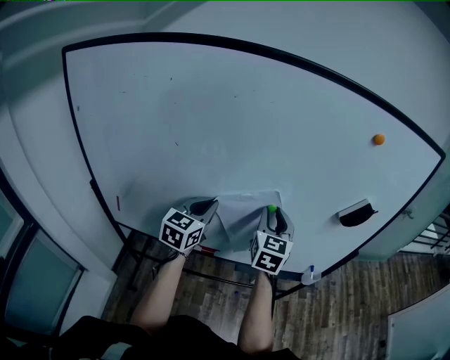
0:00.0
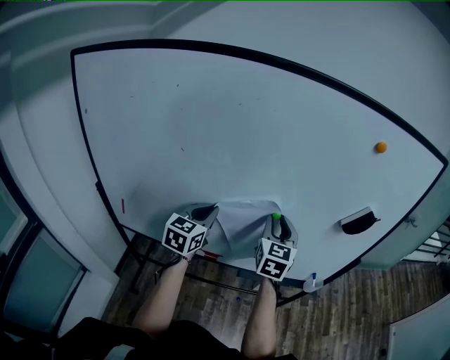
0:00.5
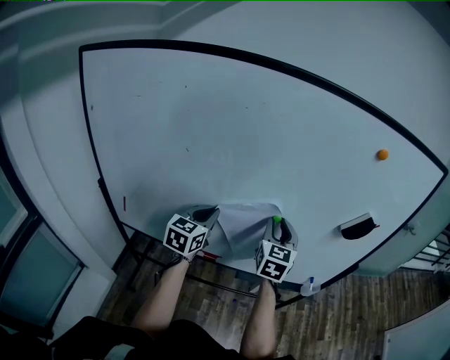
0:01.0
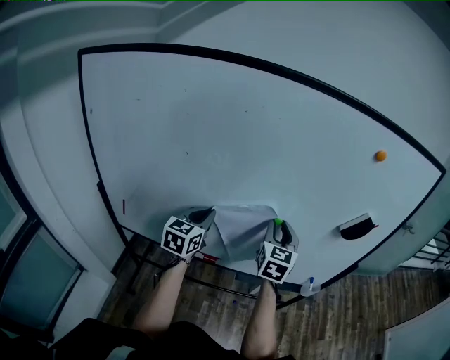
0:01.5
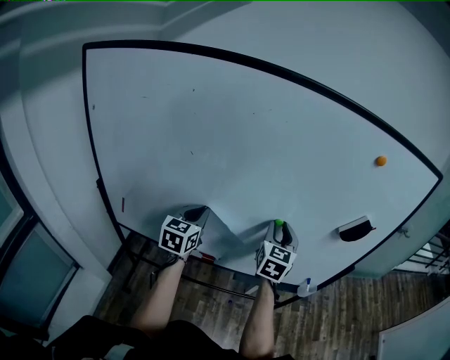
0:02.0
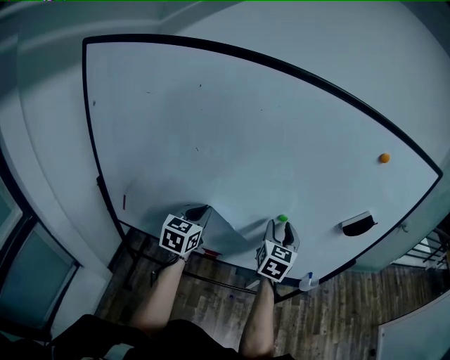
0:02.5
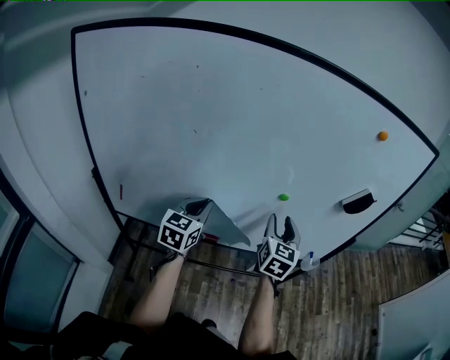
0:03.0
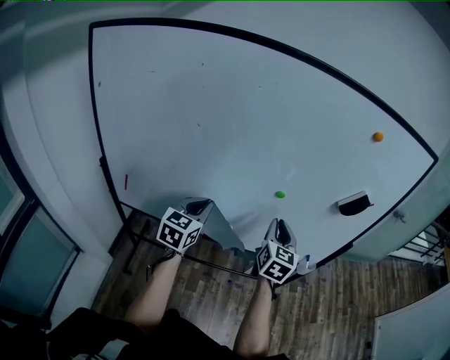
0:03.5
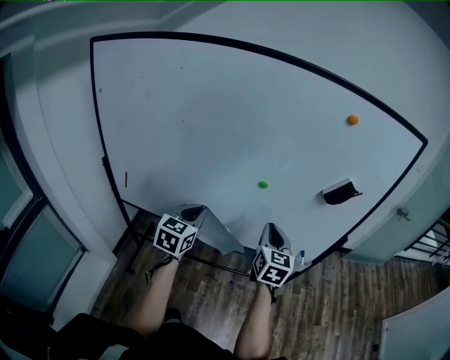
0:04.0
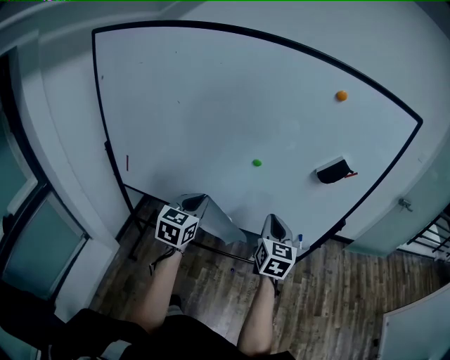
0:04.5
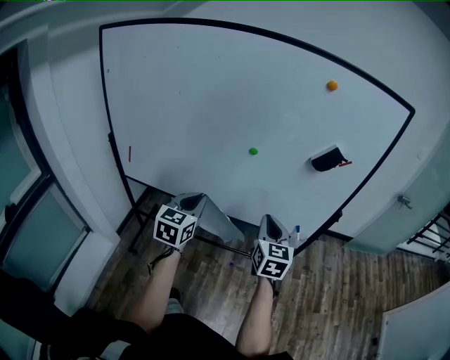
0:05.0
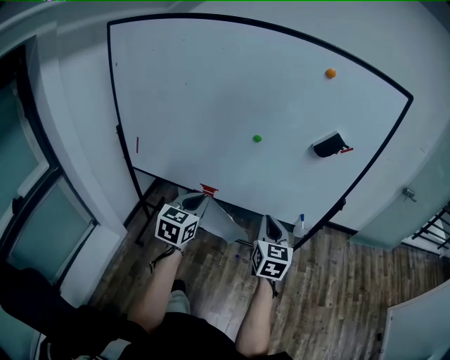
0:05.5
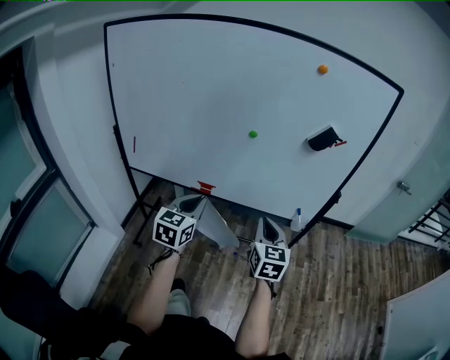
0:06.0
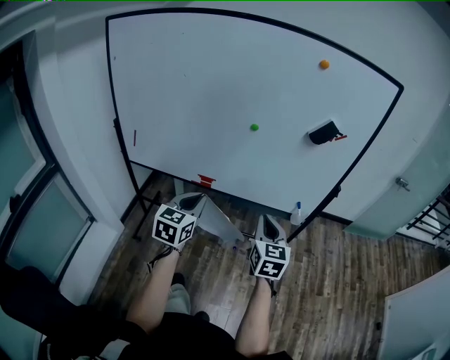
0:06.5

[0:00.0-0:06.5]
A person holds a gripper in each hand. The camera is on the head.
0:00.0 to 0:02.0: The left gripper heads to the left, covering some 5 cm.
0:02.0 to 0:04.5: Both grippers travel together backward and to the right, roughly 20 cm. The right gripper closes up.
0:04.5 to 0:06.5: Both grippers travel together backward, about 15 cm.

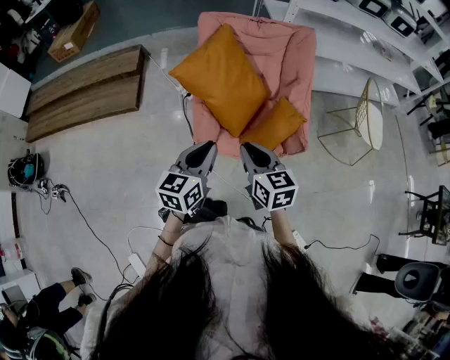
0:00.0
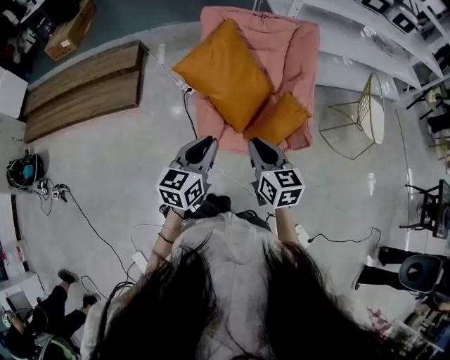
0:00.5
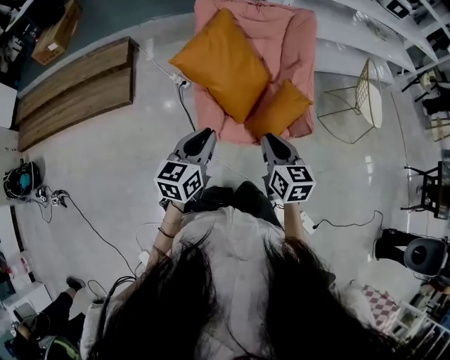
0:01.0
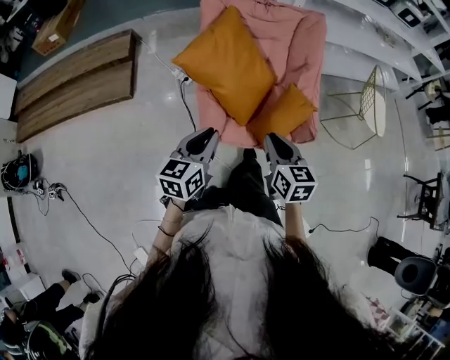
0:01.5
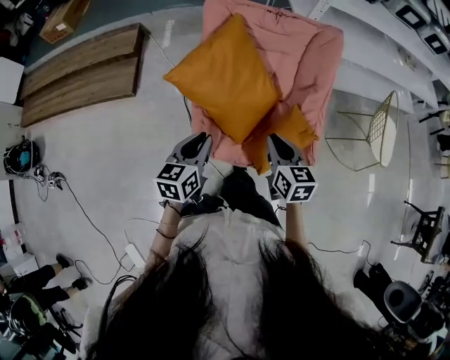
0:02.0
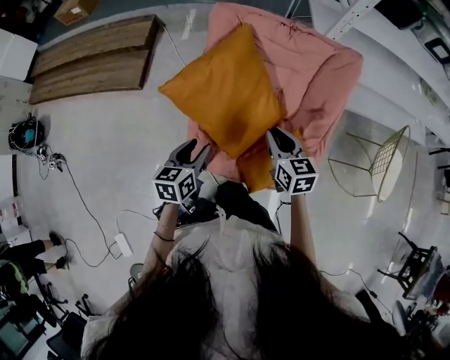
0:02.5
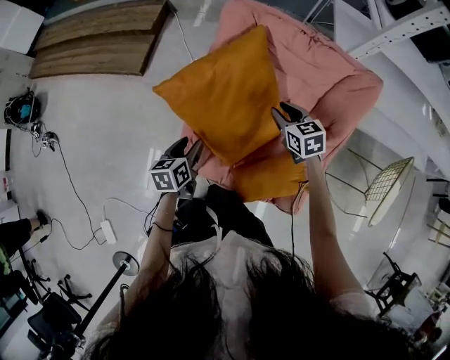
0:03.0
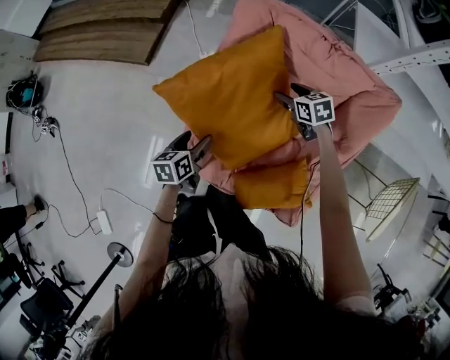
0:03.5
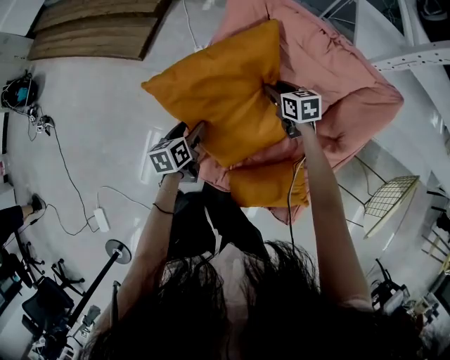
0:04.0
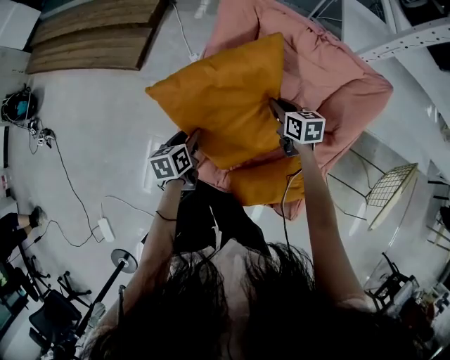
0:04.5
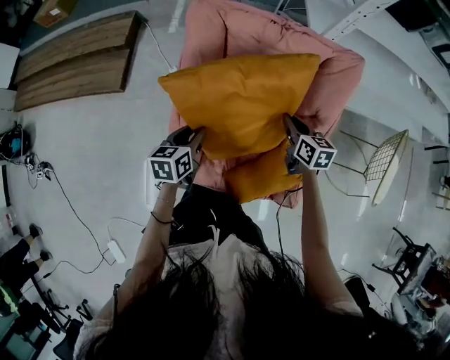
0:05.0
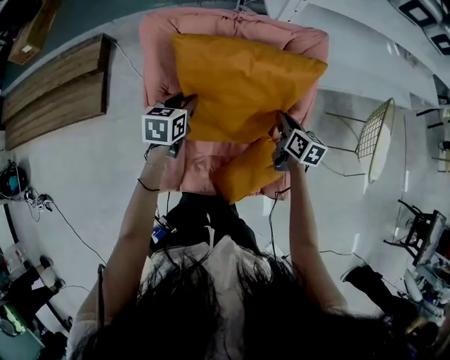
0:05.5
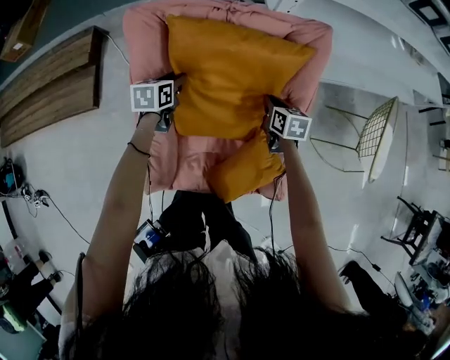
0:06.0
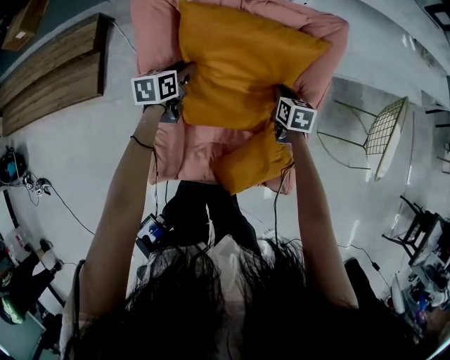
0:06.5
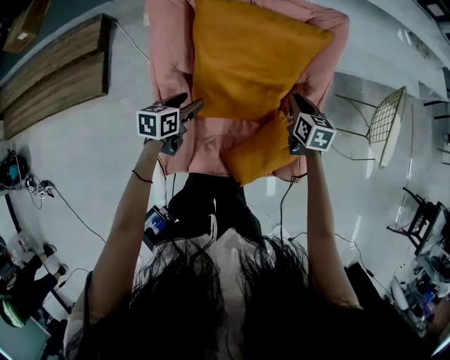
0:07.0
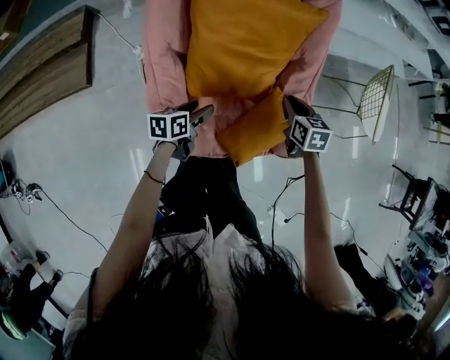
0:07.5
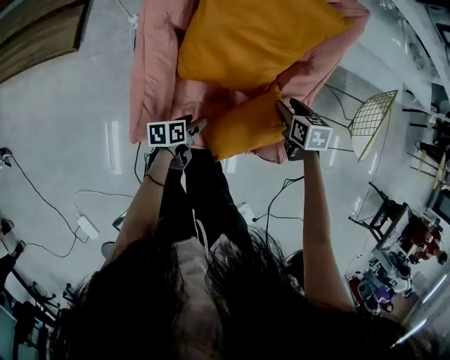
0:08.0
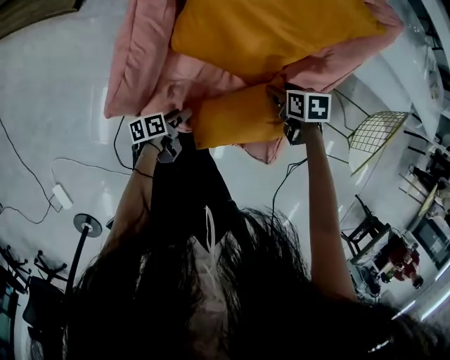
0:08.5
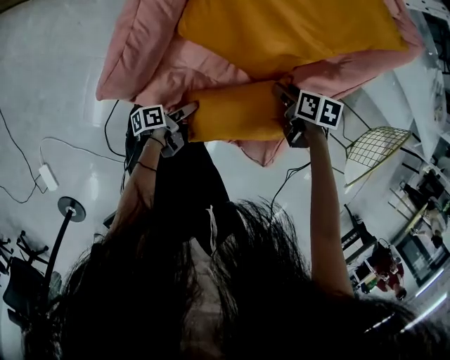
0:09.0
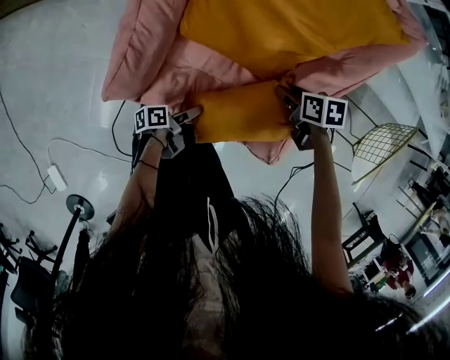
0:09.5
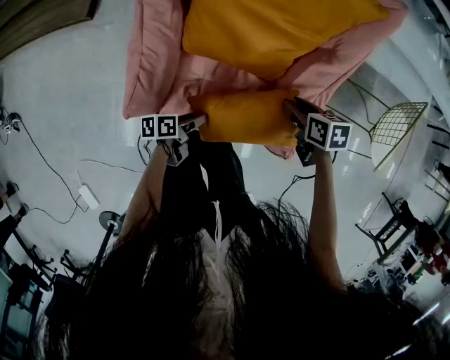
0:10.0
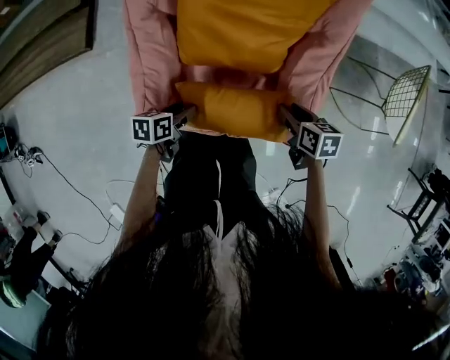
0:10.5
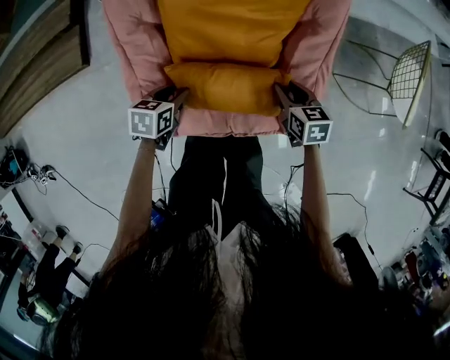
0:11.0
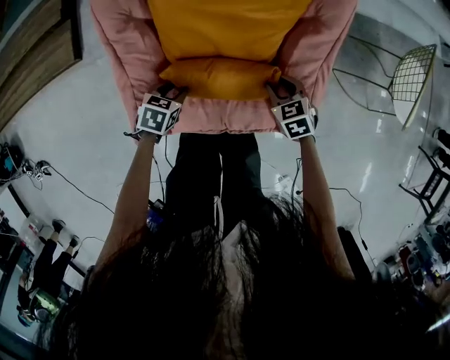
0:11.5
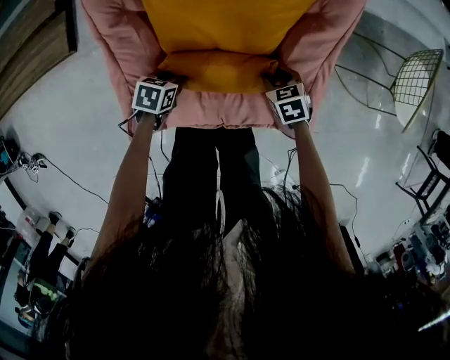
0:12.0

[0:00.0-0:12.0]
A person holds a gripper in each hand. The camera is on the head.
0:00.0 to 0:02.0: The left gripper heads forward and downward, covering roughly 15 cm. Meanwhile the right gripper goes roughly 15 cm forward.
0:02.0 to 0:04.0: The left gripper heads downward, covering about 20 cm, rotates approximately 40 degrees, and opens its fingers; the right gripper shifts by approximately 40 cm, swivels about 40 degrees, and opens.
0:04.0 to 0:06.0: The left gripper ends up some 25 cm from where it was, swivels roughly 40 degrees, and closes. Meanwhile the right gripper travels upward and back again, about 10 cm each way, turns by some 40 degrees, and closes its fingers.
0:06.0 to 0:08.0: The right gripper goes some 15 cm backward, and opens up; the left gripper goes some 40 cm backward, downward and to the right, changes its angle by about 40 degrees, and opens.
0:08.0 to 0:10.0: The left gripper reaches approximately 10 cm downward, then returns; the right gripper moves about 10 cm downward and comes back.
0:10.0 to 0:12.0: The left gripper heads forward and to the left, covering about 15 cm, and rolls clockwise, seen from behind, by about 50 degrees. Meanwhile the right gripper is displaced downward by approximately 10 cm, and swivels about 20 degrees.

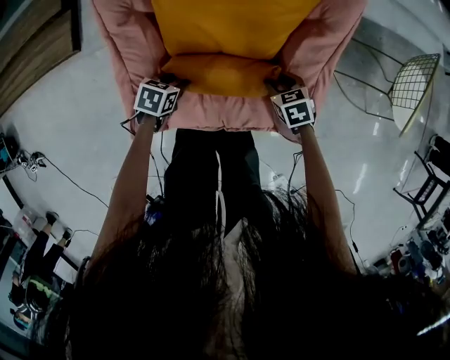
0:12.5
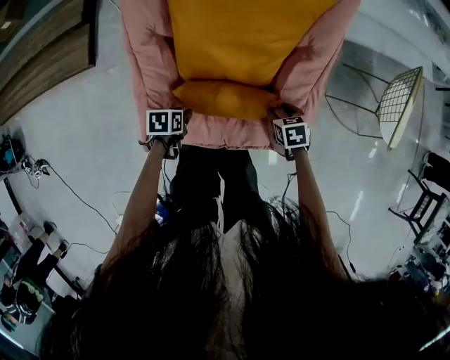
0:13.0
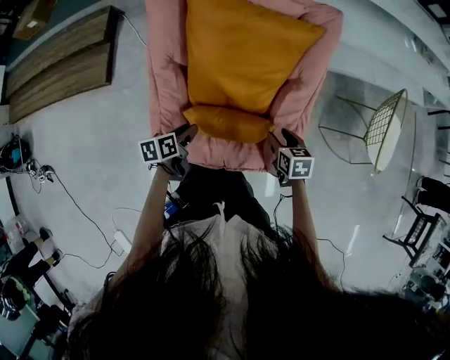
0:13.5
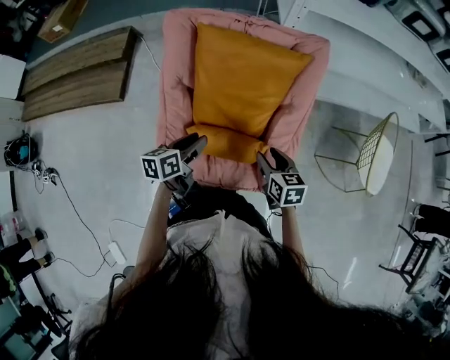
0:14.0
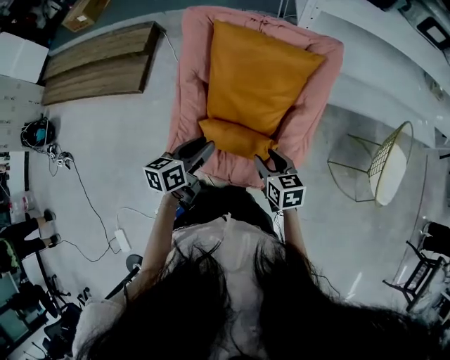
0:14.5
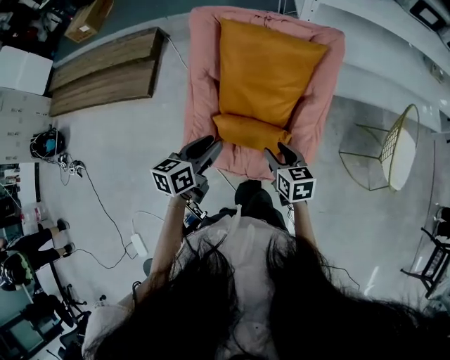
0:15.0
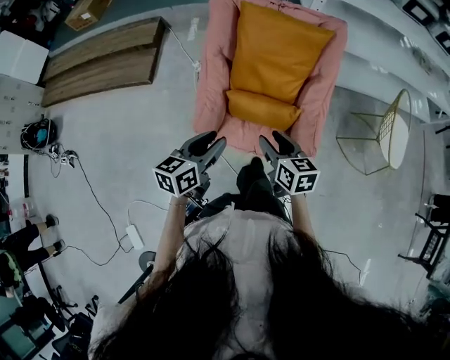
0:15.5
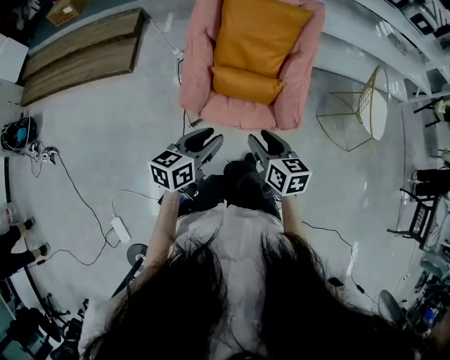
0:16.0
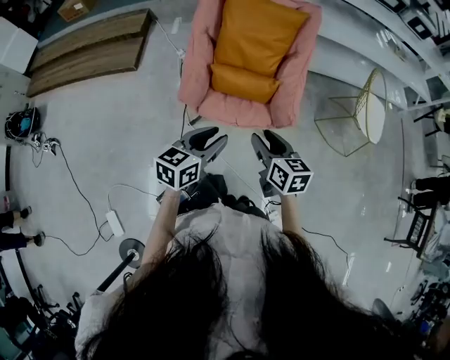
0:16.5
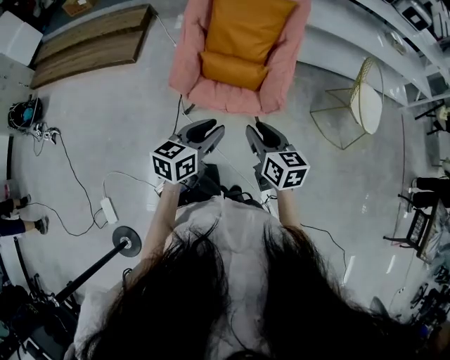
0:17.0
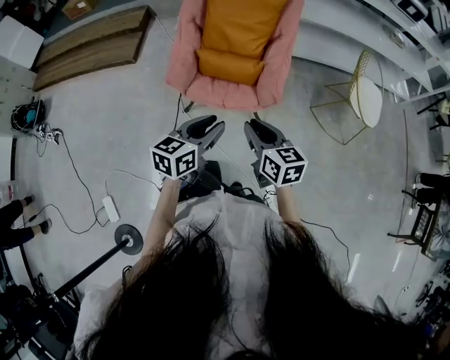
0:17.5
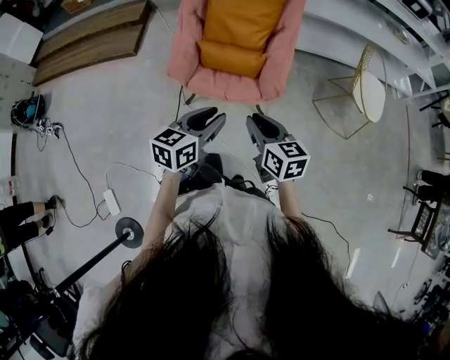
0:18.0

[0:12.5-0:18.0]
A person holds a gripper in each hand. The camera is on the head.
0:12.5 to 0:14.5: The grippers both shift upward by about 30 cm. The left gripper tips its fingers upward by some 40 degrees, while the right gripper rotates approximately 30 degrees.
0:14.5 to 0:16.0: The right gripper travels backward and to the left by about 30 cm; the left gripper goes about 30 cm backward.
0:16.0 to 0:18.0: Both grippers travel together to the right and backward, some 15 cm. The right gripper closes.

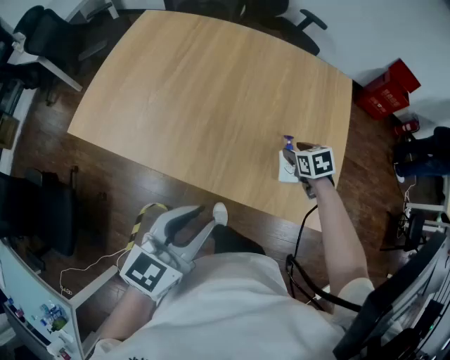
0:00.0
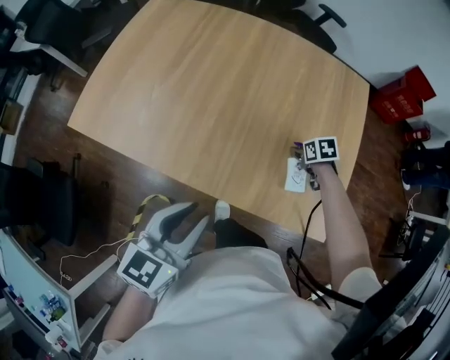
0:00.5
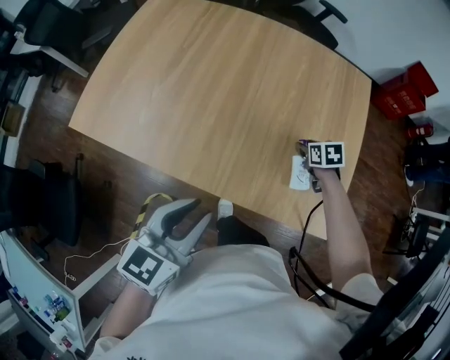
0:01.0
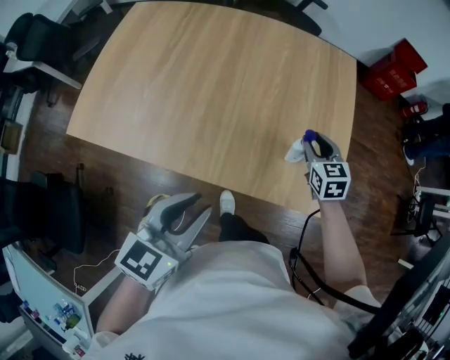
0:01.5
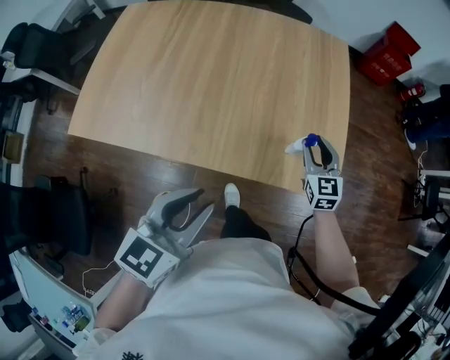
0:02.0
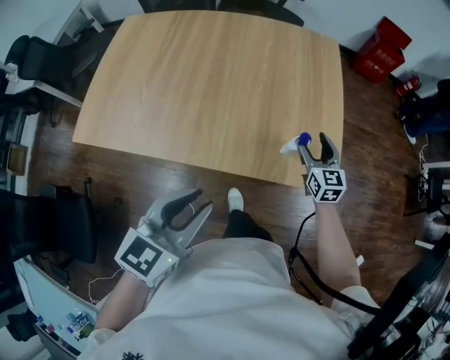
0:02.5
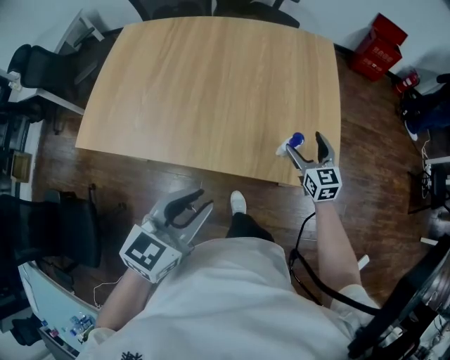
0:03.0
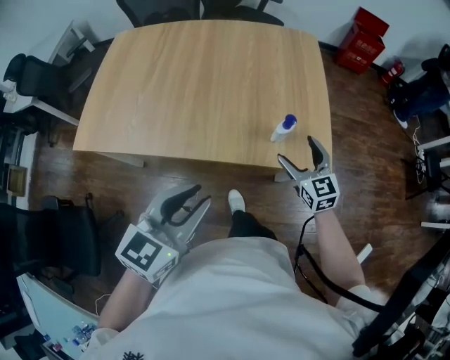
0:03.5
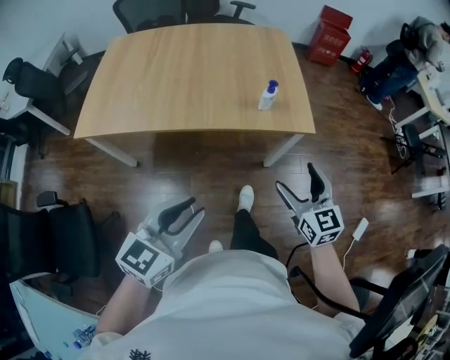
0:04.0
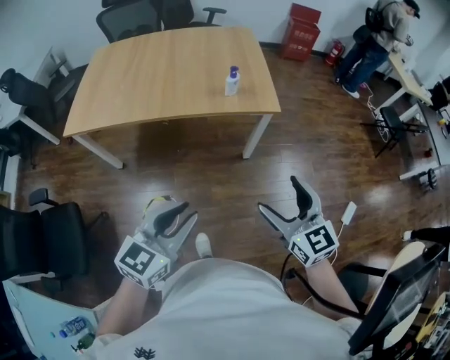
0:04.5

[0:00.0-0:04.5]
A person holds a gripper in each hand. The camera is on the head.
0:00.0 to 0:02.0: The right gripper ends up approximately 10 cm from where it was, and points its fingers approximately 40 degrees further upward.
0:02.0 to 0:04.5: The left gripper heads backward, covering roughly 30 cm. Meanwhile the right gripper heads backward, covering about 50 cm, and opens up.
